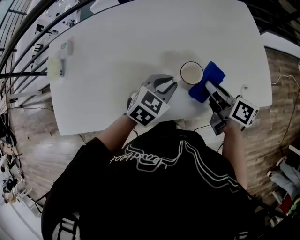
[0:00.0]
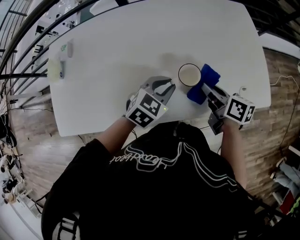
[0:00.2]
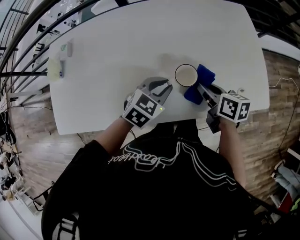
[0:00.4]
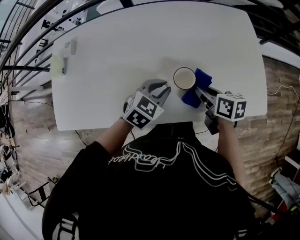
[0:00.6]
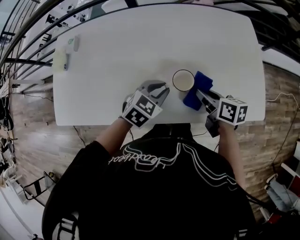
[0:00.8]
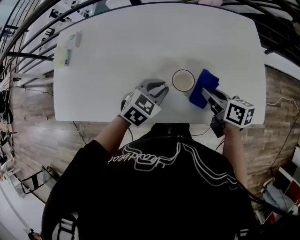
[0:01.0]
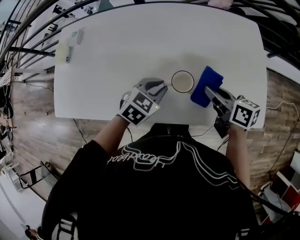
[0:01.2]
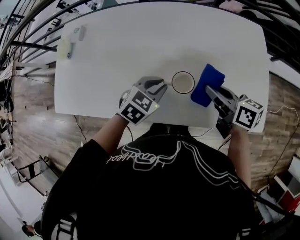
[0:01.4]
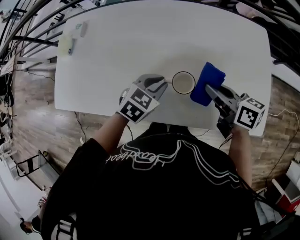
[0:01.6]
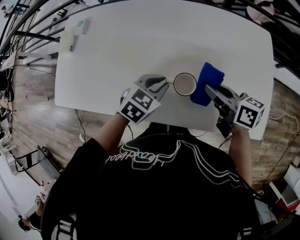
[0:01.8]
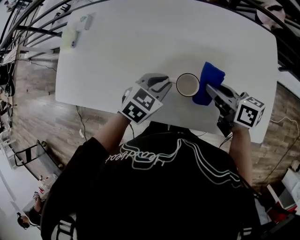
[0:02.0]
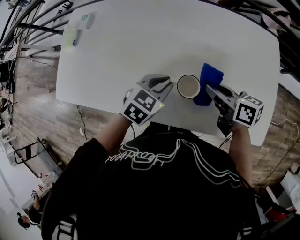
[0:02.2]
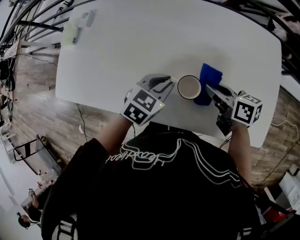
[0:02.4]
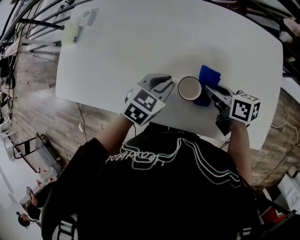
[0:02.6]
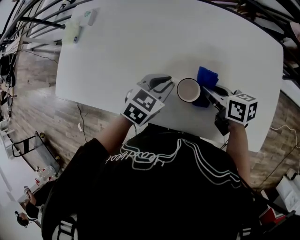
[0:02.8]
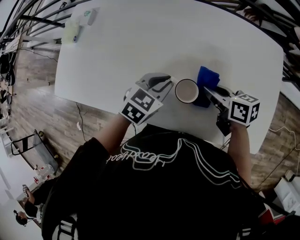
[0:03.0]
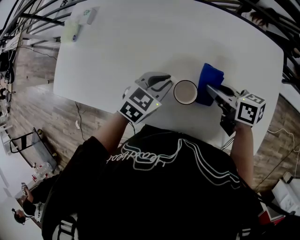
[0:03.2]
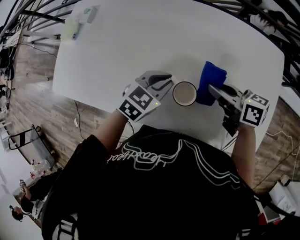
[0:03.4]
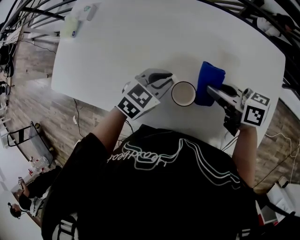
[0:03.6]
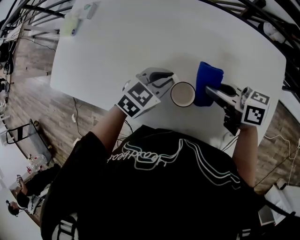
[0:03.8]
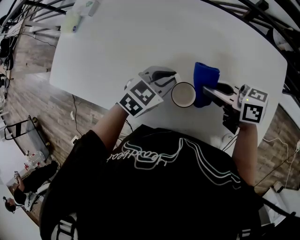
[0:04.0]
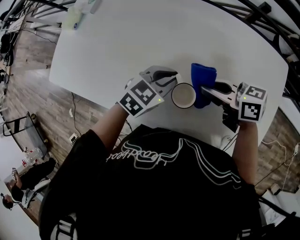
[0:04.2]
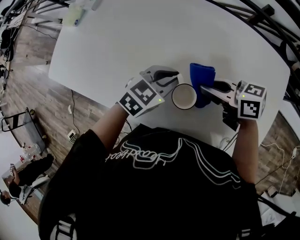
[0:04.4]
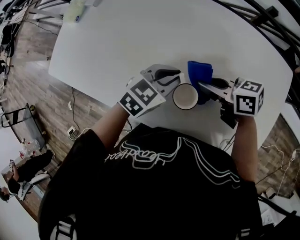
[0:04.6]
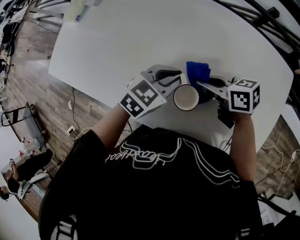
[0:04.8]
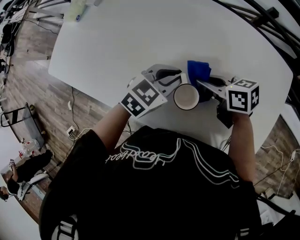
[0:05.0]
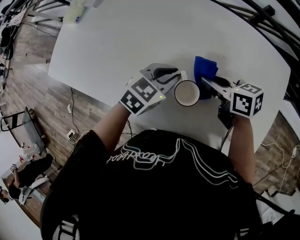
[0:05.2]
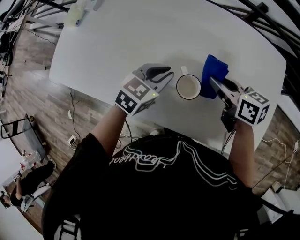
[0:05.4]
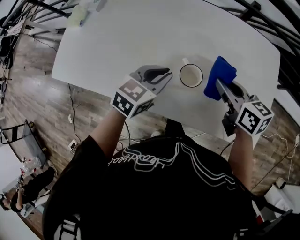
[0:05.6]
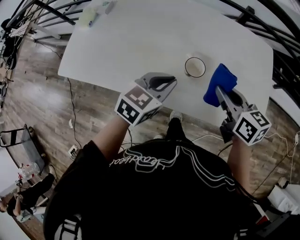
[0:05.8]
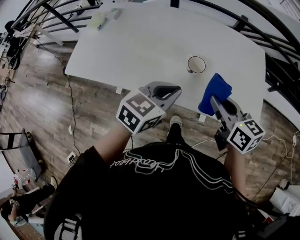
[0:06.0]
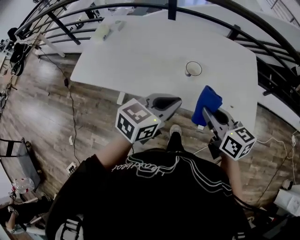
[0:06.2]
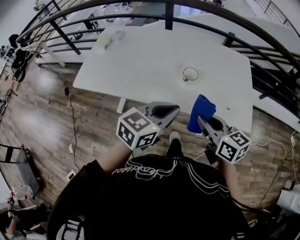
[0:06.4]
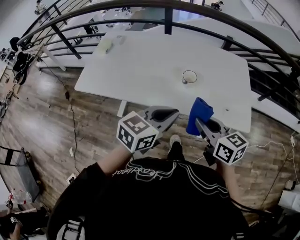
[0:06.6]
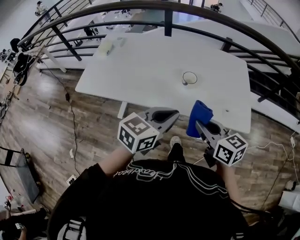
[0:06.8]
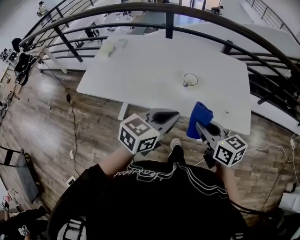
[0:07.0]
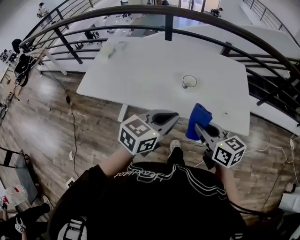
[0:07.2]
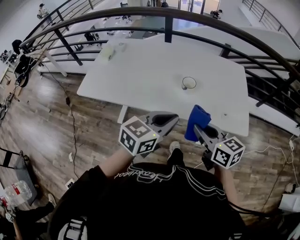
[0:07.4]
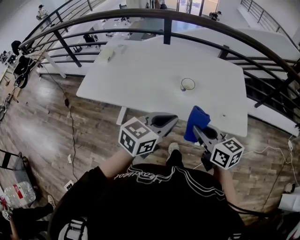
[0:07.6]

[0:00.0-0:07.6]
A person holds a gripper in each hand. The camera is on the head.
0:00.0 to 0:01.6: The right gripper is displaced forward by roughly 5 cm, and changes its angle by about 30 degrees.
0:01.6 to 0:03.0: The right gripper heads downward, covering approximately 5 cm.
0:03.0 to 0:04.6: The right gripper changes its angle by approximately 30 degrees.
0:04.6 to 0:06.0: The left gripper shifts by about 25 cm; the right gripper moves some 25 cm, and changes its angle by approximately 40 degrees.
0:06.0 to 0:07.6: The left gripper shifts some 15 cm backward and upward; the right gripper is displaced backward by about 15 cm.

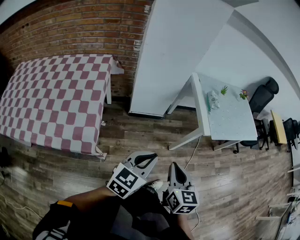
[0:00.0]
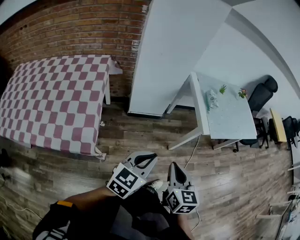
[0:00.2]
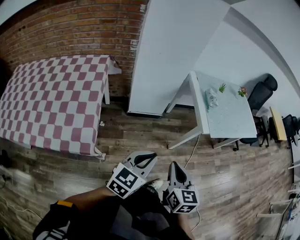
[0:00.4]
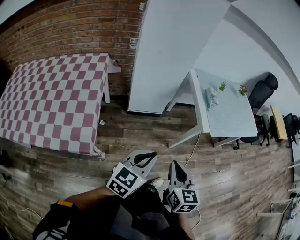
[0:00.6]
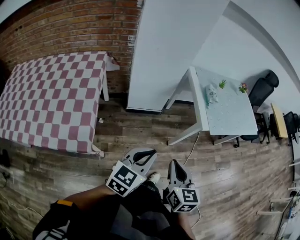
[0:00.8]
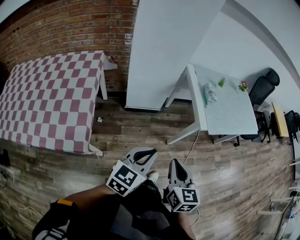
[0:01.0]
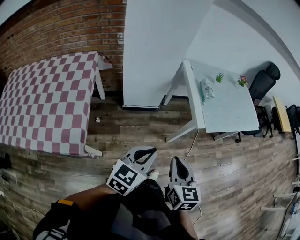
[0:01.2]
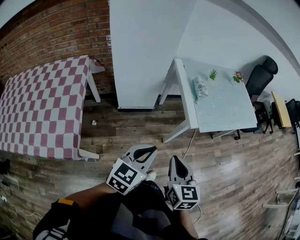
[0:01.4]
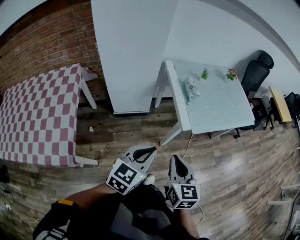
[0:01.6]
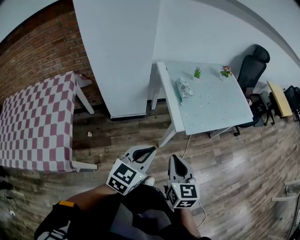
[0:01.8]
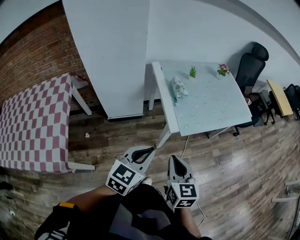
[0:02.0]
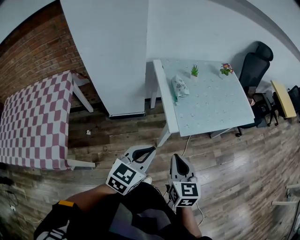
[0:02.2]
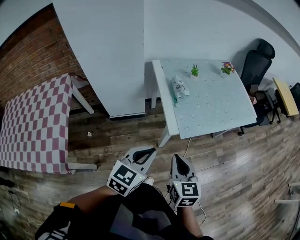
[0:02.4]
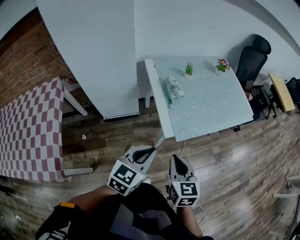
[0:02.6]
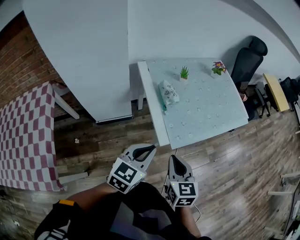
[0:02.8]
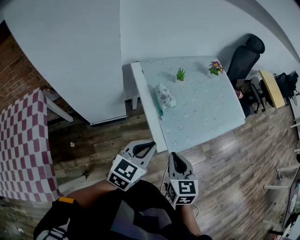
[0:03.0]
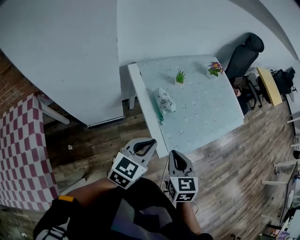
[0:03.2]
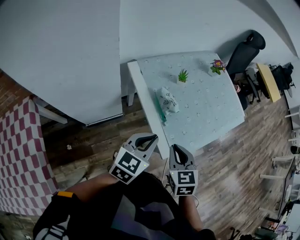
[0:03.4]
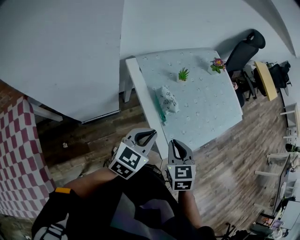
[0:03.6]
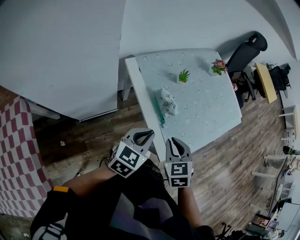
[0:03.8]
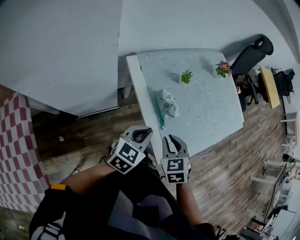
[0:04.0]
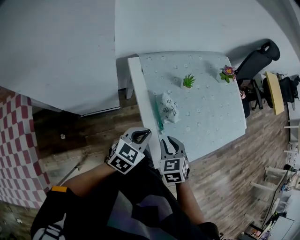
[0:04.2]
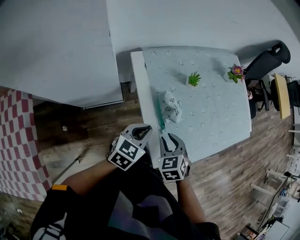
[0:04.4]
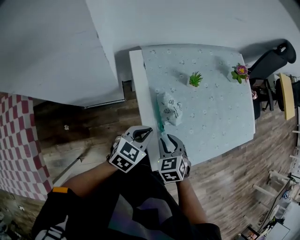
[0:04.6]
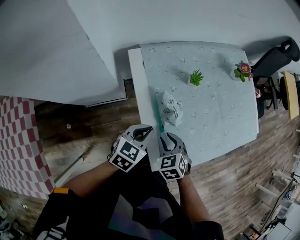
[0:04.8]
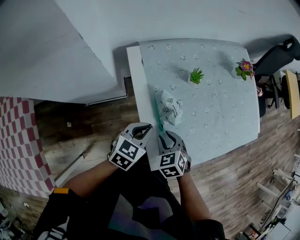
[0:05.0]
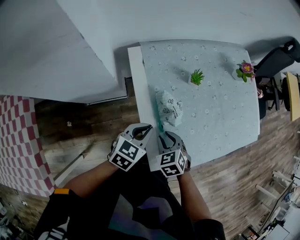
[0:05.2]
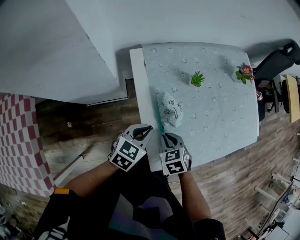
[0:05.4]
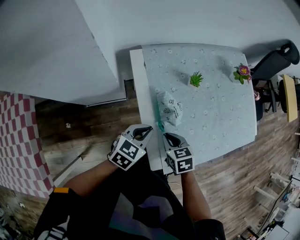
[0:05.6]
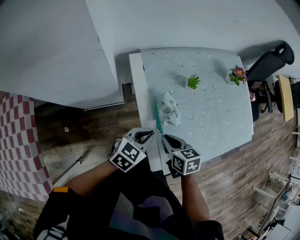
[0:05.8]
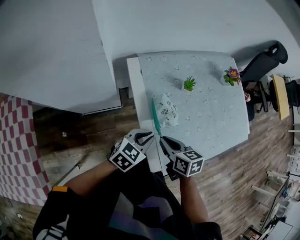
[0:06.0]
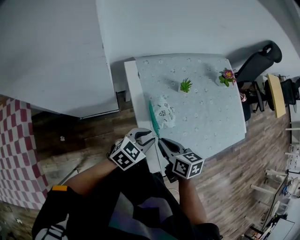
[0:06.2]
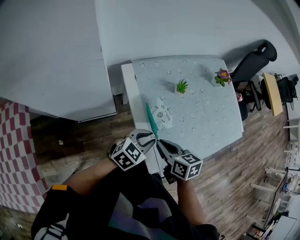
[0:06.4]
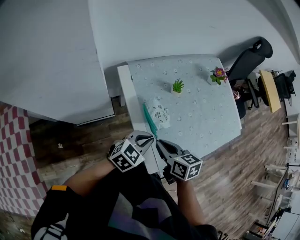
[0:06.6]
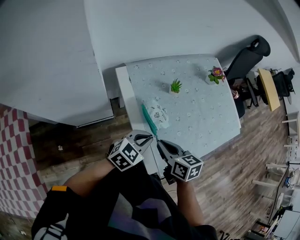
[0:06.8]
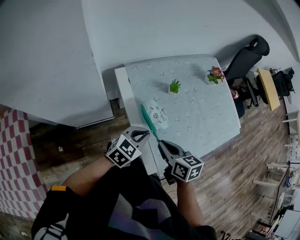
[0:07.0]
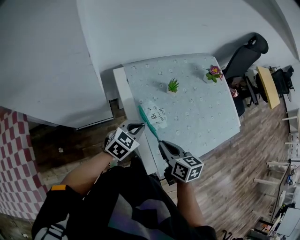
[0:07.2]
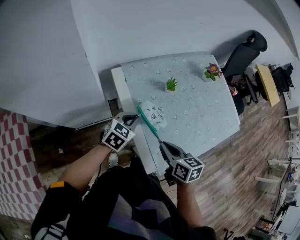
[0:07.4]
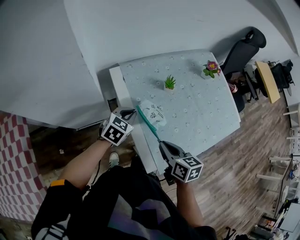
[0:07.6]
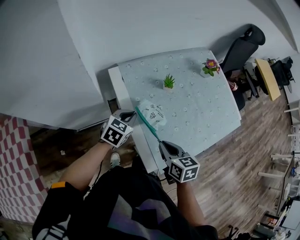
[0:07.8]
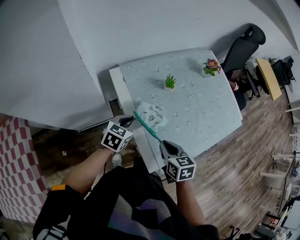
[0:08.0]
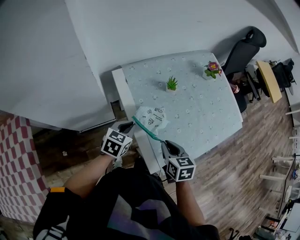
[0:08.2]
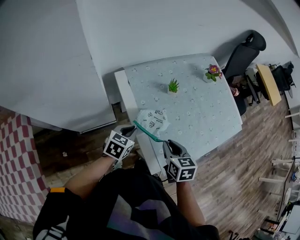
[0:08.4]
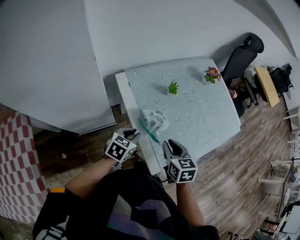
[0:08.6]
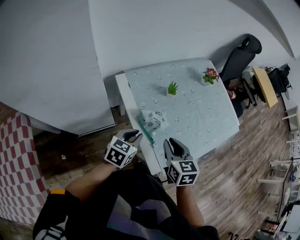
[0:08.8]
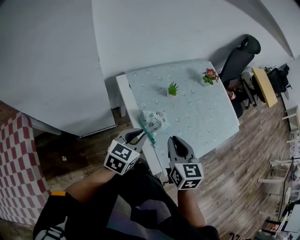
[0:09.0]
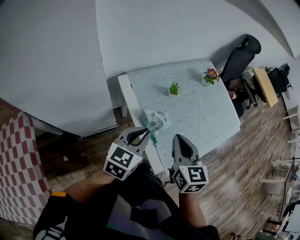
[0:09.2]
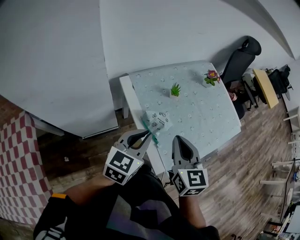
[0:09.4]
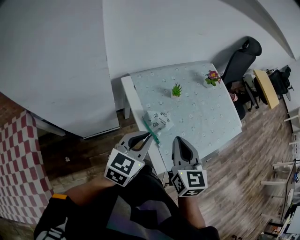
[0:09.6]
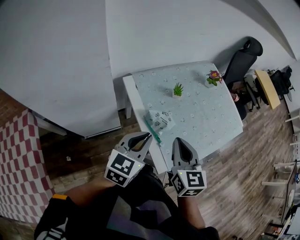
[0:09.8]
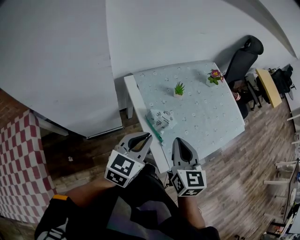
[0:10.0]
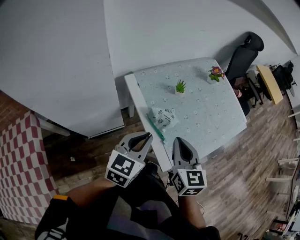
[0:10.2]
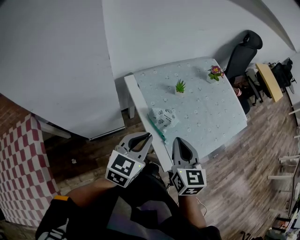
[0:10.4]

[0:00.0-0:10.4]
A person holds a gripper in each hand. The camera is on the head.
0:00.0 to 0:01.4: Both grippers travel together to the right and forward, some 15 cm.
0:01.4 to 0:03.0: Both grippers travel together forward and to the right, some 30 cm.
0:03.0 to 0:04.4: The two grippers go some 25 cm forward, downward and to the left. The right gripper rotates approximately 40 degrees, and opens up.
0:04.4 to 0:06.0: The right gripper reaches roughly 5 cm downward, then returns, and turns by roughly 50 degrees.
0:06.0 to 0:07.4: The left gripper moves forward, approximately 10 cm. Meanwhile the right gripper changes place by approximately 5 cm.
0:07.4 to 0:09.0: The left gripper goes approximately 10 cm upward and backward; the right gripper shifts some 10 cm upward, and swivels roughly 30 degrees.
0:09.0 to 0:10.4: The right gripper moves about 5 cm. The left gripper shifts approximately 5 cm upward.

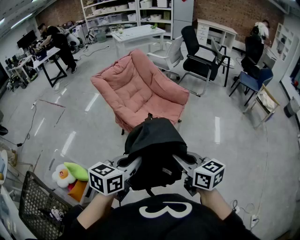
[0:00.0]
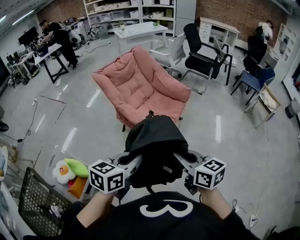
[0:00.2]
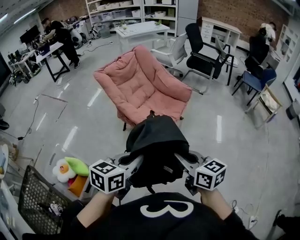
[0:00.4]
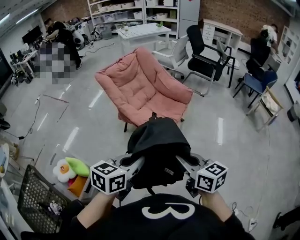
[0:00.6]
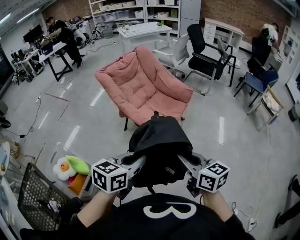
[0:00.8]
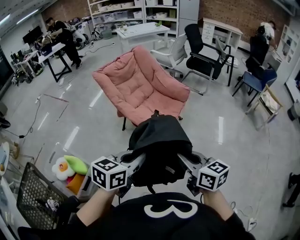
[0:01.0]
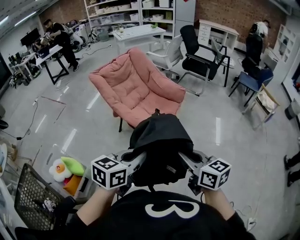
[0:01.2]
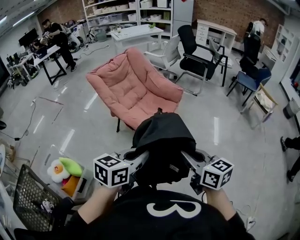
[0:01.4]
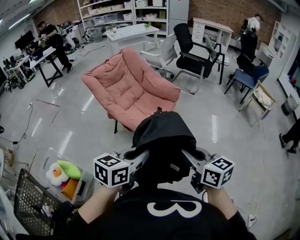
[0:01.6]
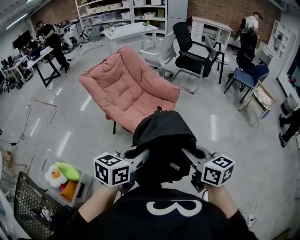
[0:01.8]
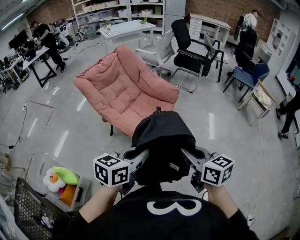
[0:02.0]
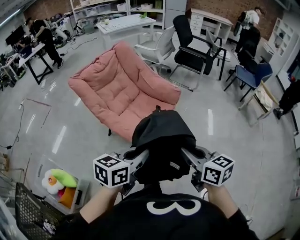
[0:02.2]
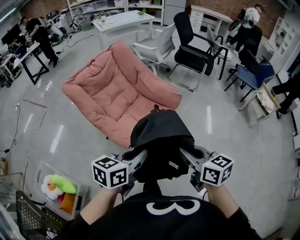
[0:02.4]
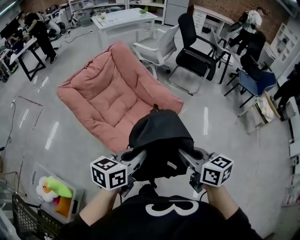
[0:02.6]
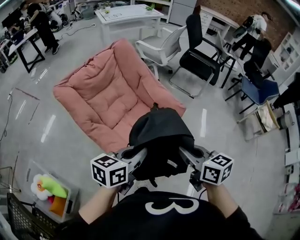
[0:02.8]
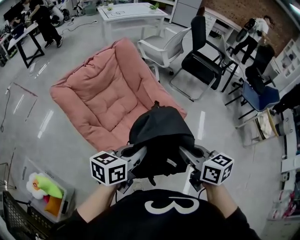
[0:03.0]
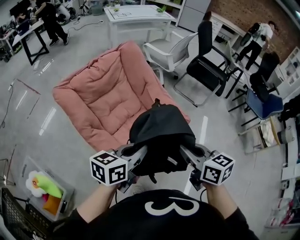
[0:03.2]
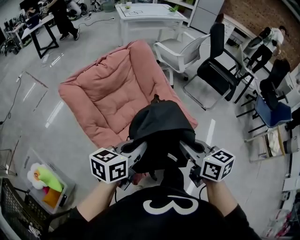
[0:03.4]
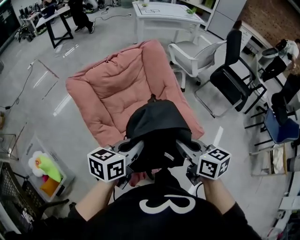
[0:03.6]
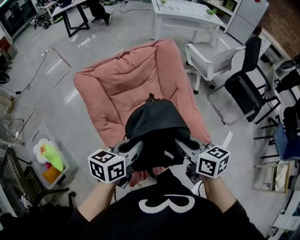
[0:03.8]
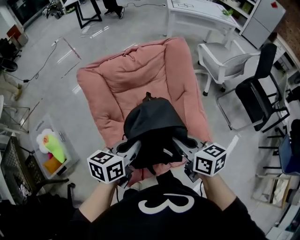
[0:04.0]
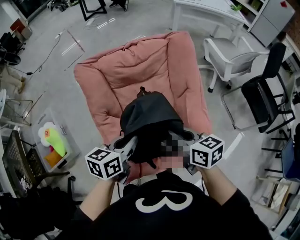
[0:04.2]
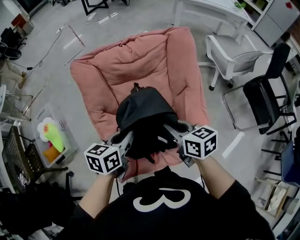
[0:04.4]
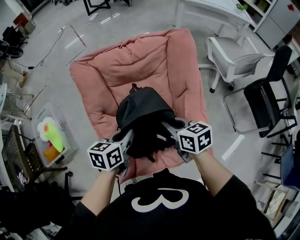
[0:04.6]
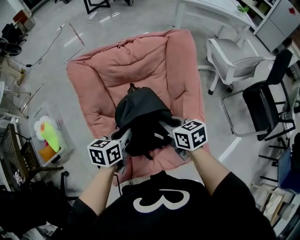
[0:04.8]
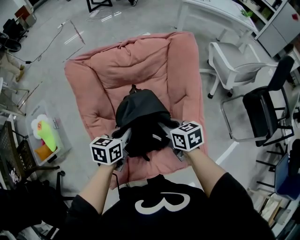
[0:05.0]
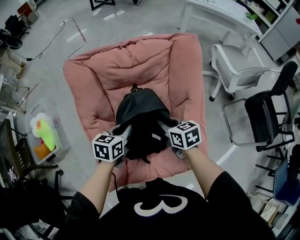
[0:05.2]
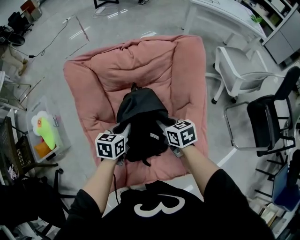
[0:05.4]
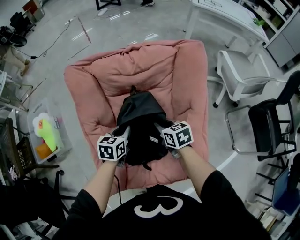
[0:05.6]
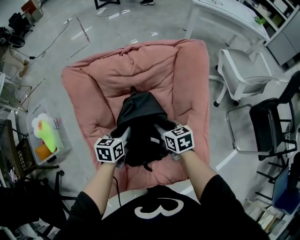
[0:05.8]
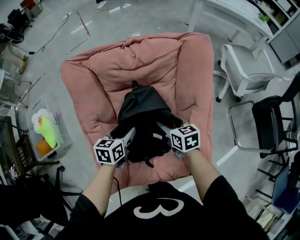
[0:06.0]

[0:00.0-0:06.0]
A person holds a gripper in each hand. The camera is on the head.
0:00.0 to 0:01.6: Both grippers travel together to the right, some 10 cm.
0:01.6 to 0:03.0: Both grippers are carried forward, about 50 cm.
0:03.0 to 0:04.4: The right gripper changes place by approximately 30 cm, and rotates roughly 40 degrees. Meanwhile the left gripper changes place by about 20 cm, and rotates approximately 50 degrees.
0:04.4 to 0:06.0: The two grippers go some 20 cm downward and forward. The right gripper opens its fingers. Meanwhile the left gripper opens its fingers.
